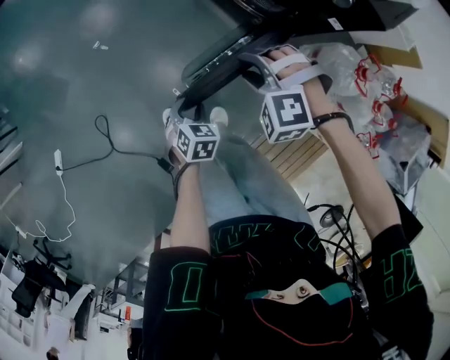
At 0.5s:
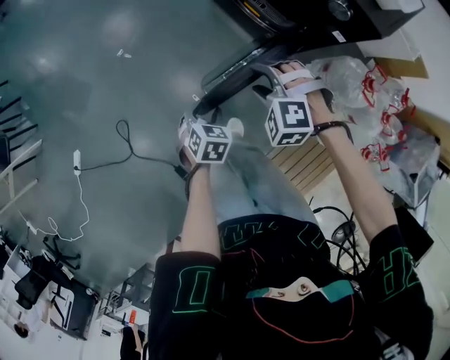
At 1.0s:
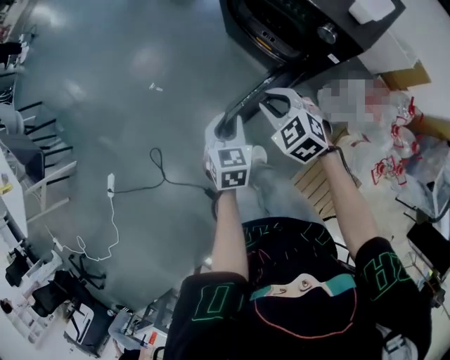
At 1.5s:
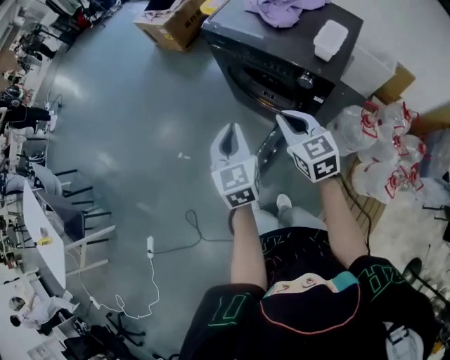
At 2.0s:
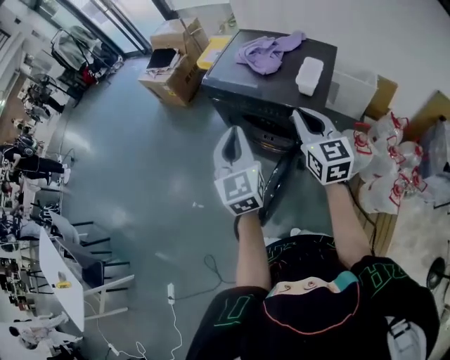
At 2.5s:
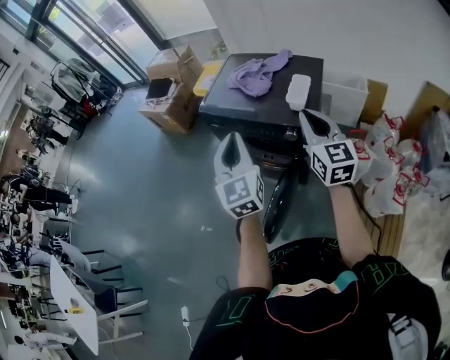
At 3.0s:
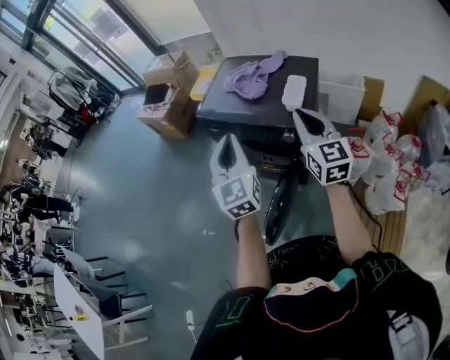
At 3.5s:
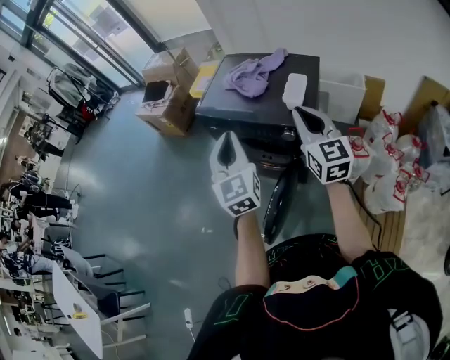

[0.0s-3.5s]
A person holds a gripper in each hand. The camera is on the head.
0.0s to 2.0s: Both grippers travel together upward, roughly 50 cm. The right gripper points its fingers approximately 60 degrees further upward, and closes. The left gripper tilts its fingers some 60 degrees upward, and closes its fingers.
2.0s to 3.5s: The right gripper goes about 5 cm to the right. The left gripper ends up some 5 cm from where it was.

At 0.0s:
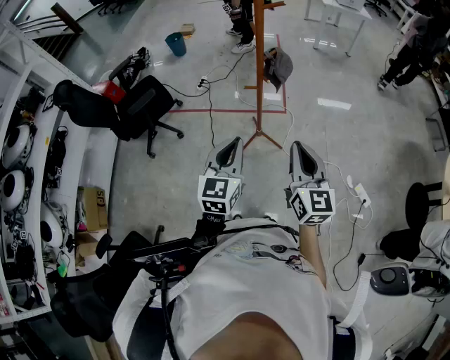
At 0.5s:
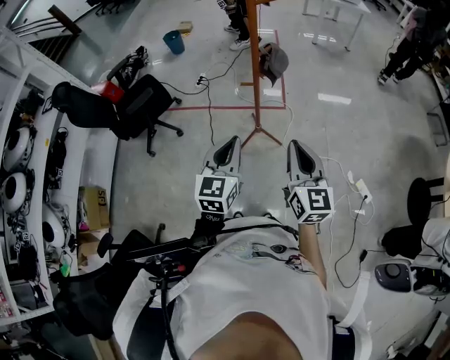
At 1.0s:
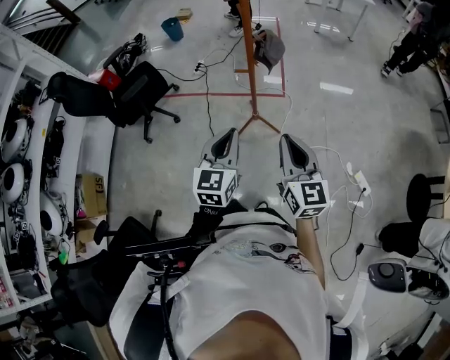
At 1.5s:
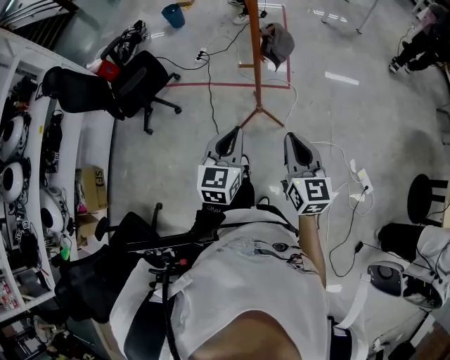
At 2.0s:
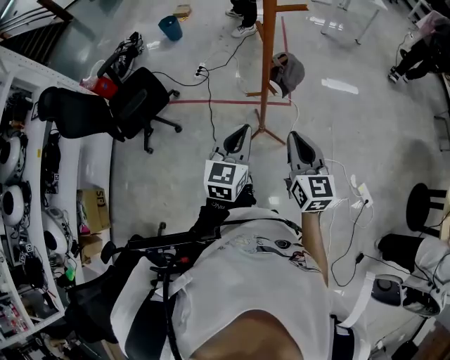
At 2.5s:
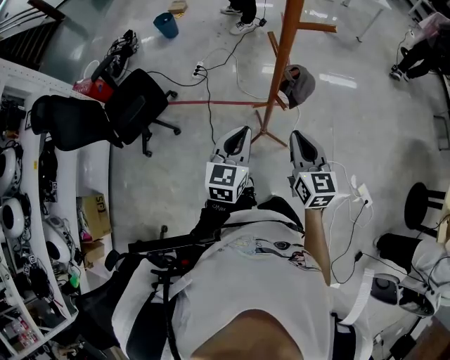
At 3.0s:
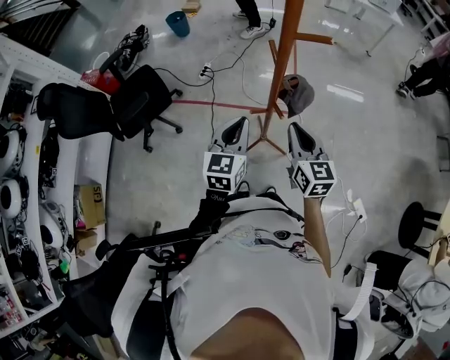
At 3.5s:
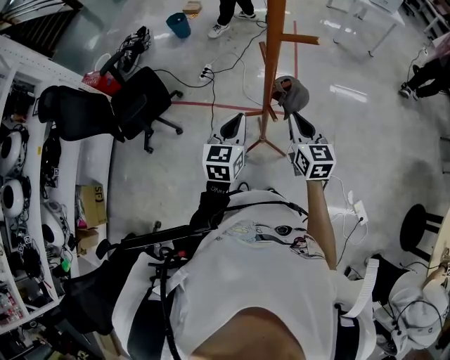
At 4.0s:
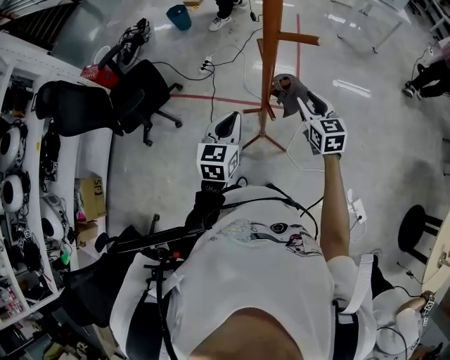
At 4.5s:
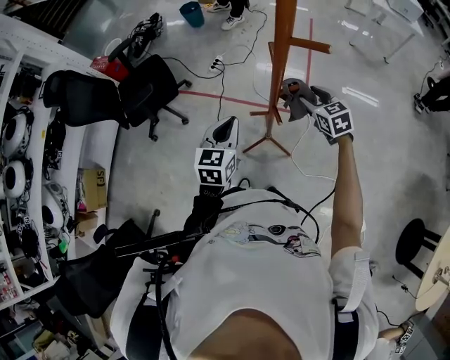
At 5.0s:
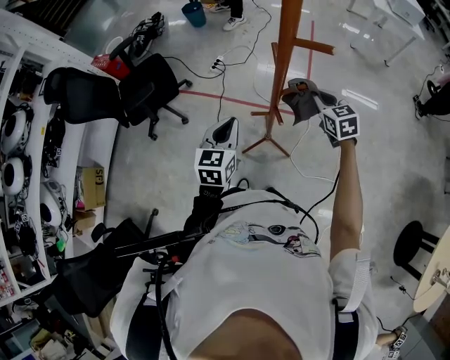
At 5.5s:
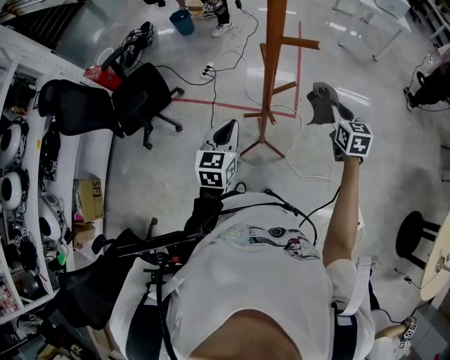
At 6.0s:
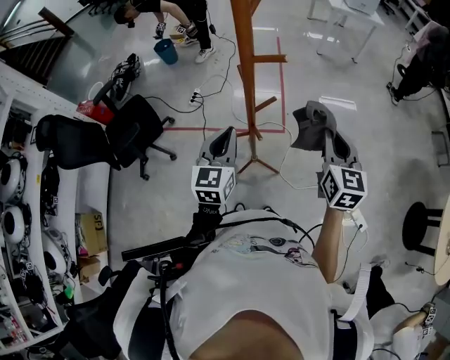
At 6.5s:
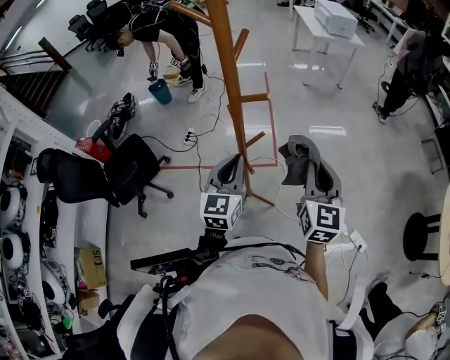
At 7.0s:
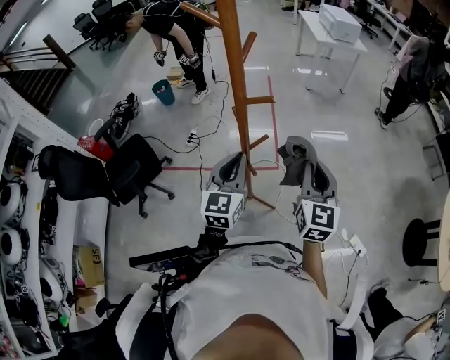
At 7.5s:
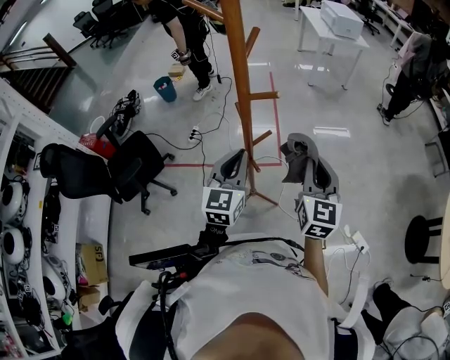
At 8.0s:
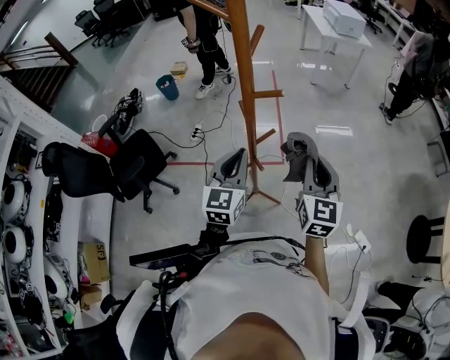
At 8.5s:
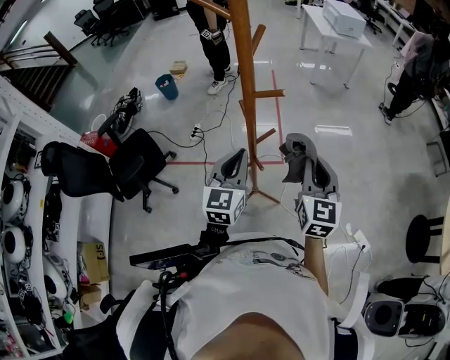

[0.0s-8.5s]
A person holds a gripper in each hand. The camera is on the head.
0.0s to 2.0s: The grippers both shift forward by some 15 cm.
2.0s to 4.0s: The right gripper shifts about 25 cm forward, and opens up. Meanwhile the left gripper heads forward, covering roughly 15 cm.
4.0s to 6.5s: The left gripper is displaced upward by roughly 10 cm. The right gripper is displaced upward by some 20 cm, rotates some 40 degrees, and closes its fingers.
6.5s to 8.5s: The grippers make only small movements.

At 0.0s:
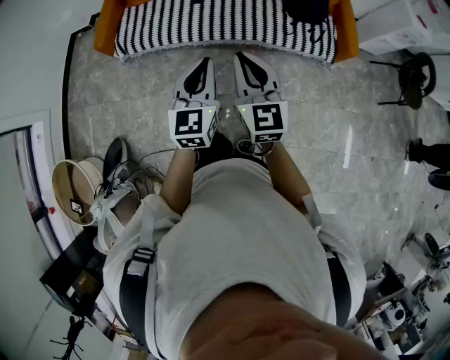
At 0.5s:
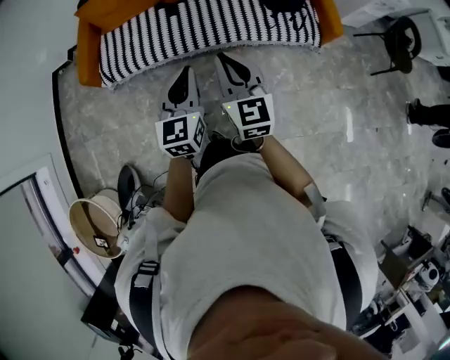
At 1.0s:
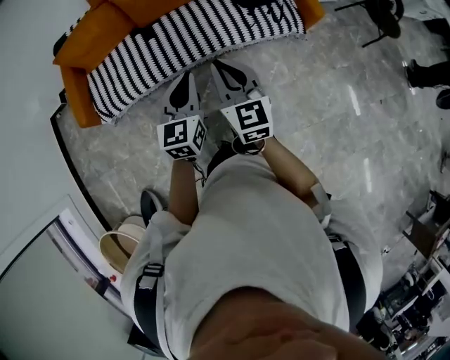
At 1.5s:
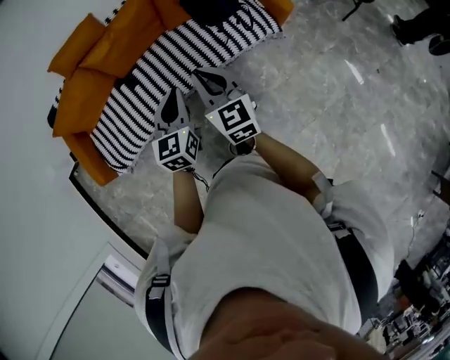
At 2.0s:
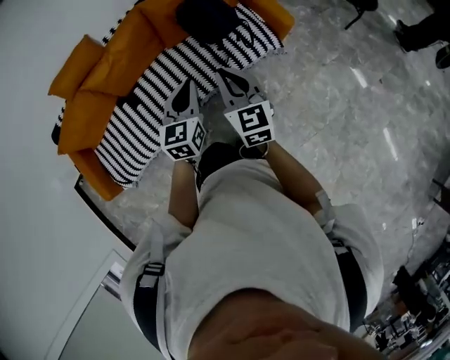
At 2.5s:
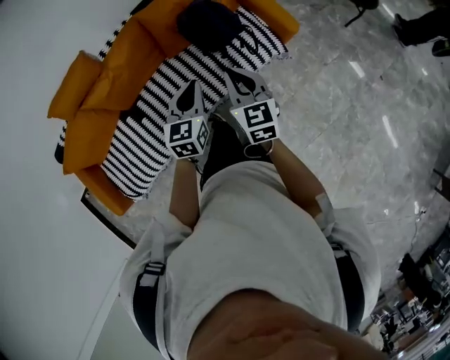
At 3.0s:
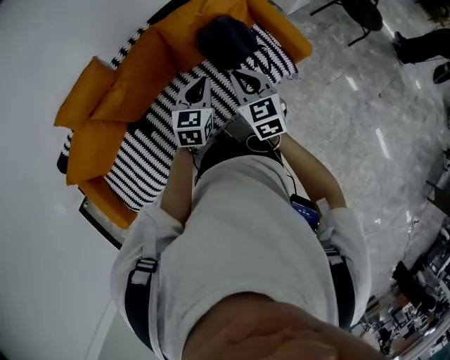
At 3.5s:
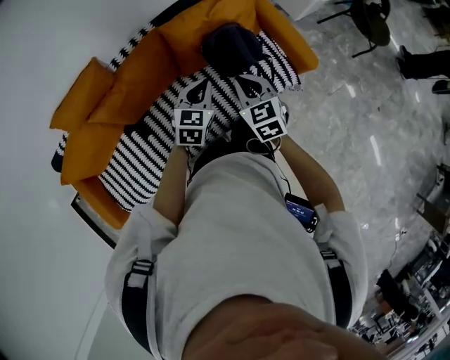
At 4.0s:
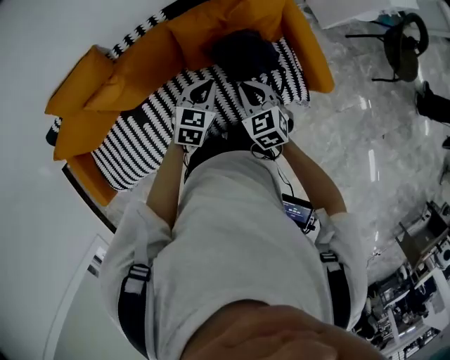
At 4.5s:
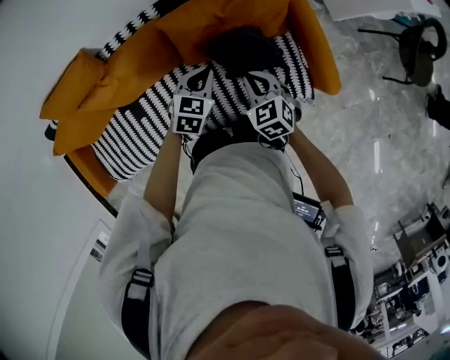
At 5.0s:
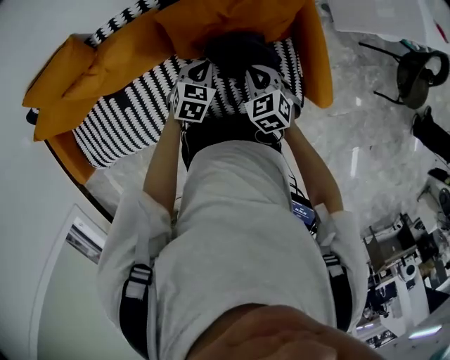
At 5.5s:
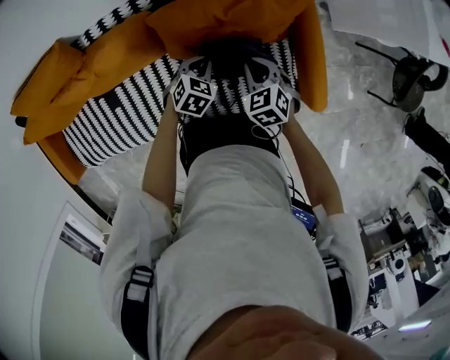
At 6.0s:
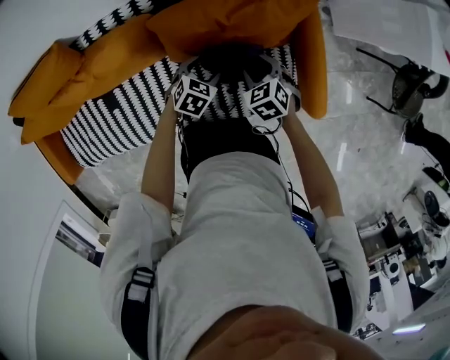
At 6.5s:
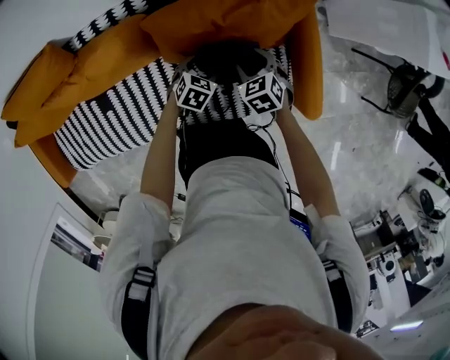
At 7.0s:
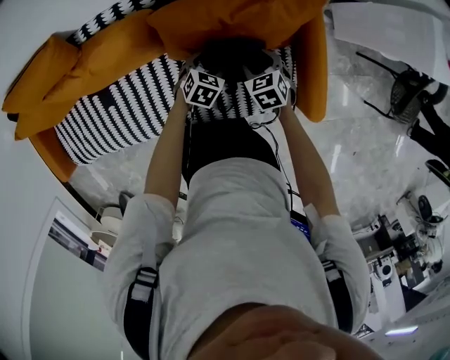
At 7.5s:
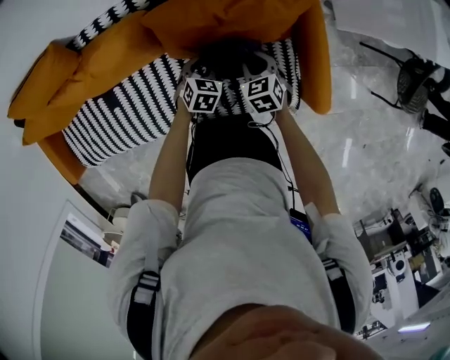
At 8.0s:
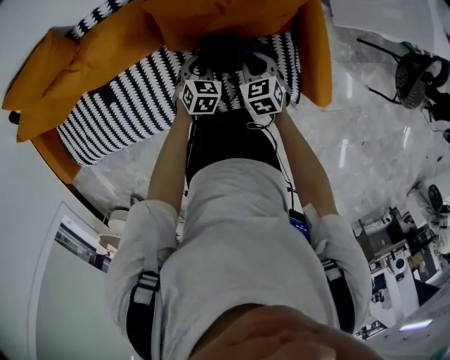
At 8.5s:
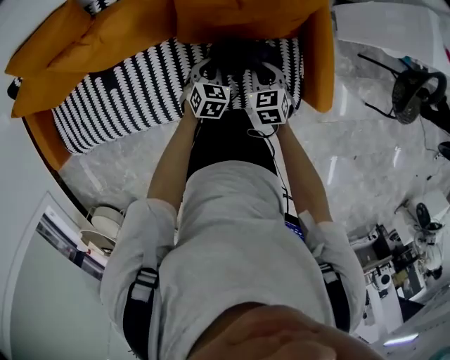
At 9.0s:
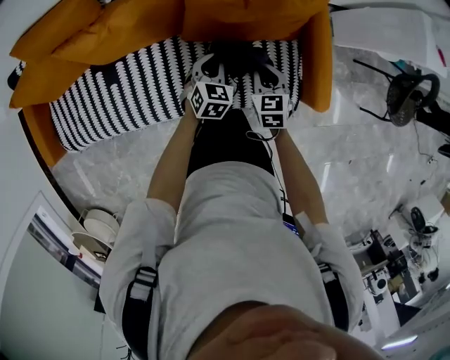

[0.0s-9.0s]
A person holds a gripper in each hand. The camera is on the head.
0.0s to 2.0s: The right gripper changes place by about 40 cm, and turns by some 30 degrees. Meanwhile the left gripper shifts by about 40 cm, and rotates about 40 degrees.
2.0s to 4.5s: Both grippers are carried forward, roughly 40 cm. Both grippers move downward, about 20 cm. The left gripper swivels approximately 30 degrees; the right gripper points its fingers some 30 degrees further downward.
4.5s to 7.0s: The right gripper shifts roughly 20 cm downward and forward, and opens its fingers. Meanwhile the left gripper goes about 20 cm downward, and opens up.
7.0s to 9.0s: The left gripper shifts roughly 15 cm backward, upward and to the left, swivels roughly 20 degrees, and closes. Meanwhile the right gripper travels backward and upward by roughly 15 cm, changes its angle by about 20 degrees, and closes up.

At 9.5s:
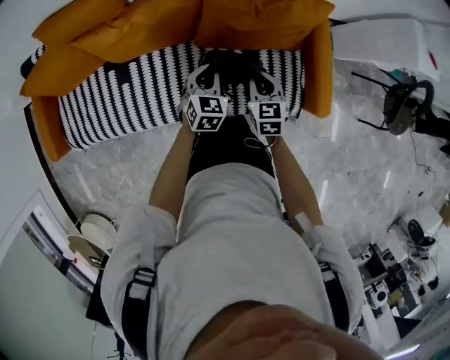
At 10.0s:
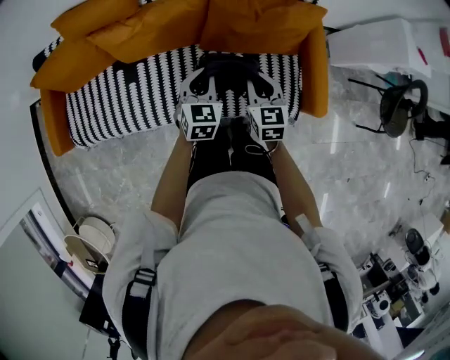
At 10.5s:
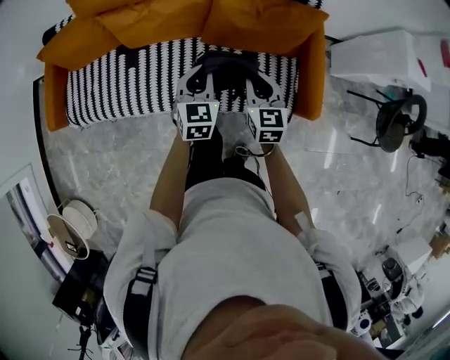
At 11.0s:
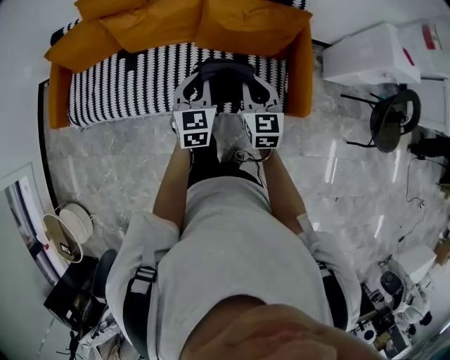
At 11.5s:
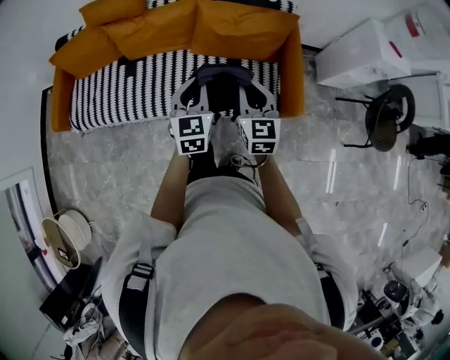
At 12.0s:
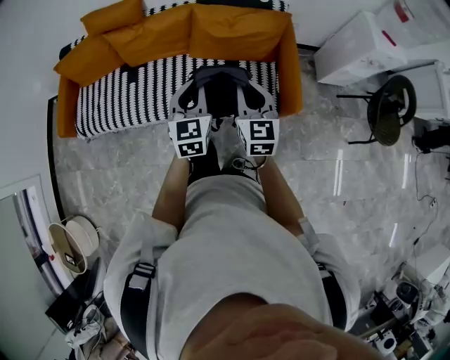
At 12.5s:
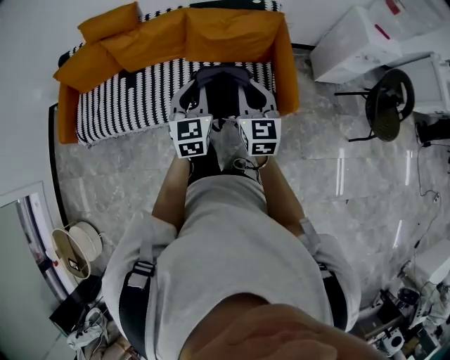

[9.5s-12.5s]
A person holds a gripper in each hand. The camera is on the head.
9.5s to 11.0s: Both grippers travel together upward and backward, about 25 cm. The left gripper changes its angle by approximately 20 degrees.
11.0s to 12.5s: The two grippers go approximately 15 cm backward, upward and to the right.

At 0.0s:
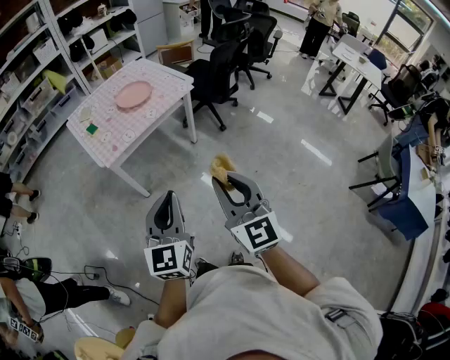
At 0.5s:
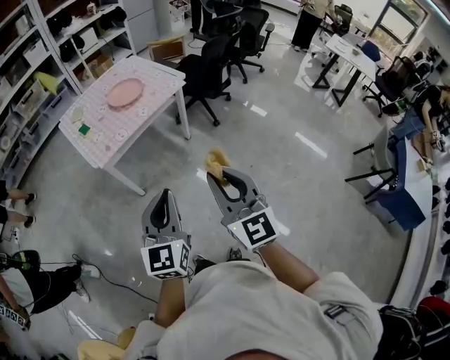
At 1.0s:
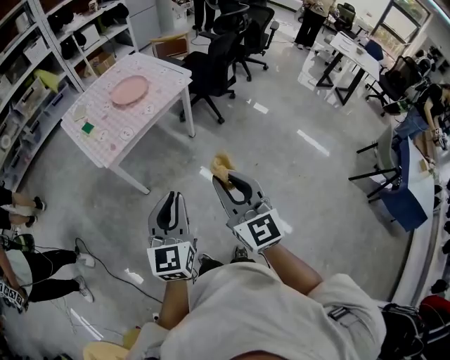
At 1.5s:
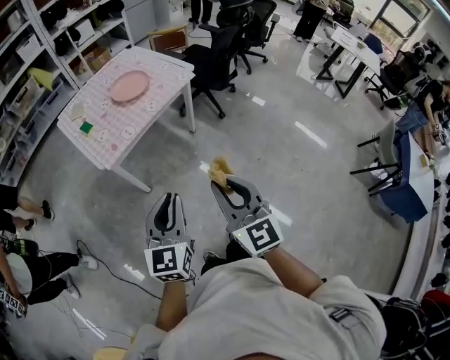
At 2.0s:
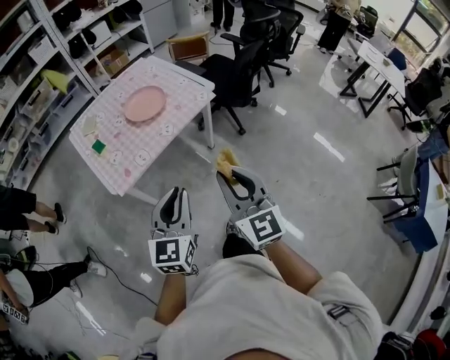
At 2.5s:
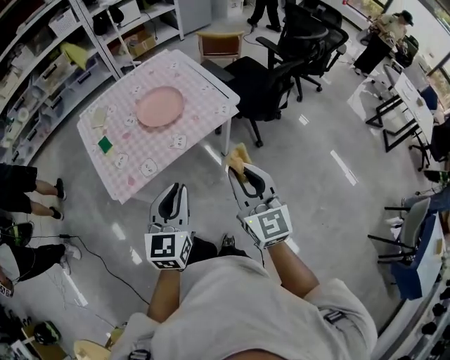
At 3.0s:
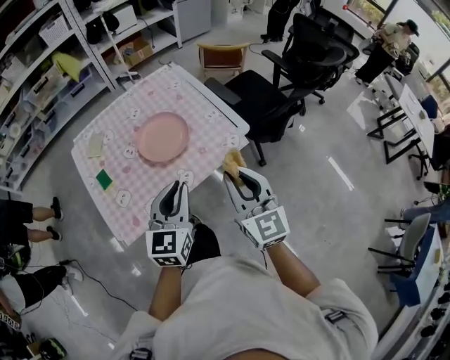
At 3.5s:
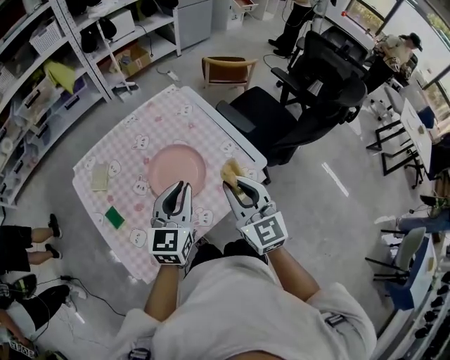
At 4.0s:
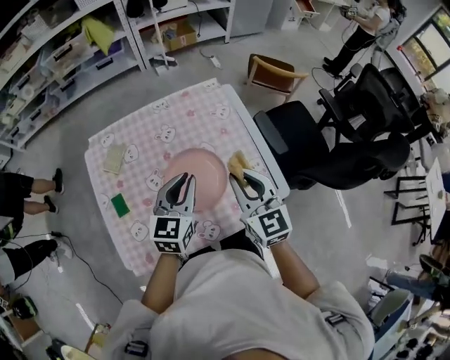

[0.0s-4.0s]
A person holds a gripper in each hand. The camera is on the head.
0.0s to 2.0s: Both grippers move forward, approximately 25 cm.
2.0s to 4.0s: The two grippers travel together, forward, about 60 cm. The right gripper turns by about 30 degrees.
